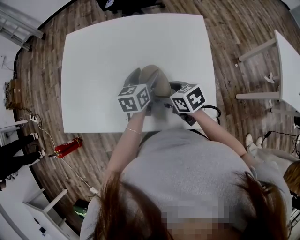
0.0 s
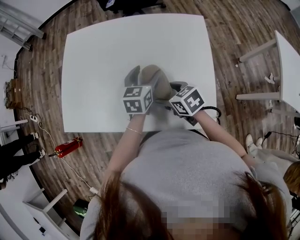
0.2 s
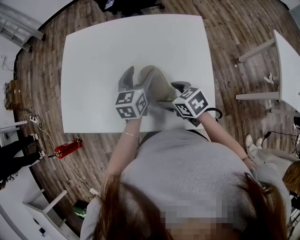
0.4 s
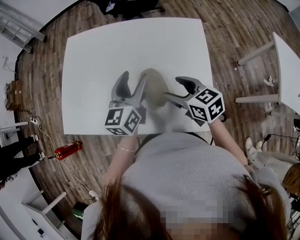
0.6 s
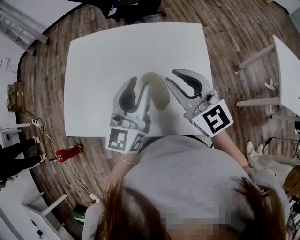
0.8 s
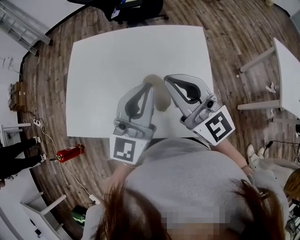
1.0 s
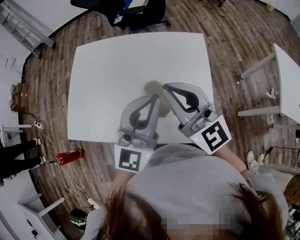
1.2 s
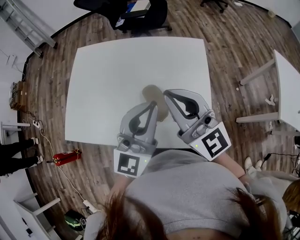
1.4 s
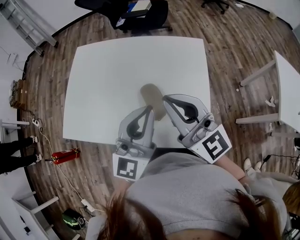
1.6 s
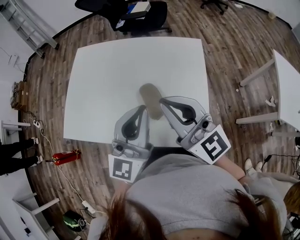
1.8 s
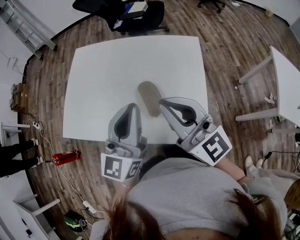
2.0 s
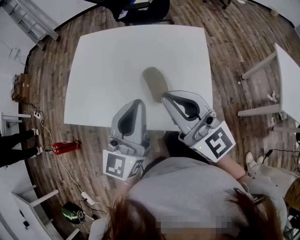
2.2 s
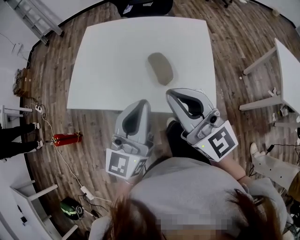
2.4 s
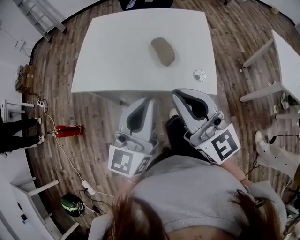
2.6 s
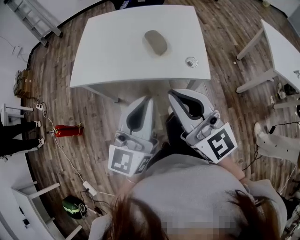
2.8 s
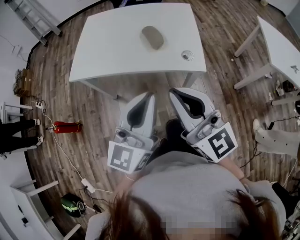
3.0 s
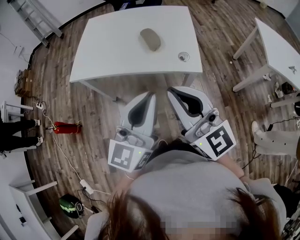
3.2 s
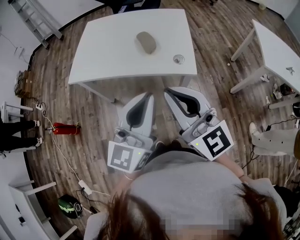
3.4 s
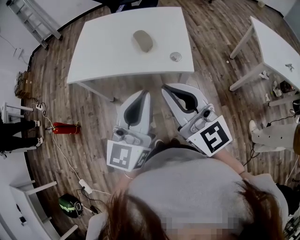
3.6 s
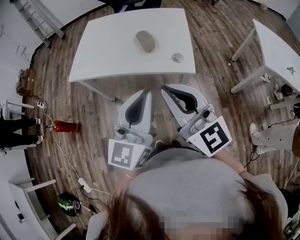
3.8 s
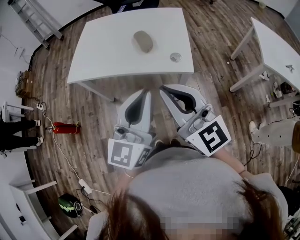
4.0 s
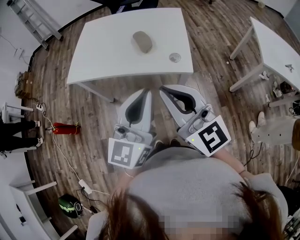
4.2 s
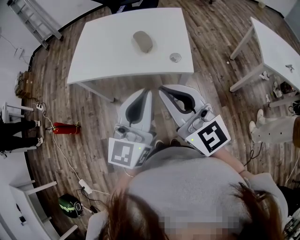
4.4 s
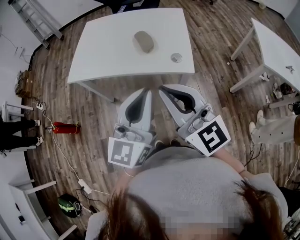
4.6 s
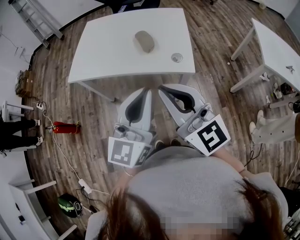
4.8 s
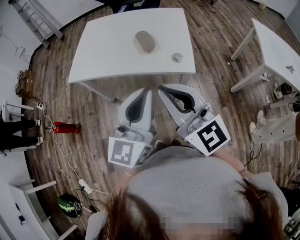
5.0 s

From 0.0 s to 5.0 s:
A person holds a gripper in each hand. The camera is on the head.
From 0.0 s to 1.6 s: The left gripper shifts about 25 cm upward and backward, tips its fingers upward by approximately 40 degrees, and closes its fingers. Meanwhile the right gripper heads upward, covering some 25 cm, angles its fingers upward, by roughly 50 degrees, and closes up.
From 1.6 s to 3.4 s: The grippers both shift backward by roughly 35 cm.
From 3.4 s to 5.0 s: The grippers make only small movements.

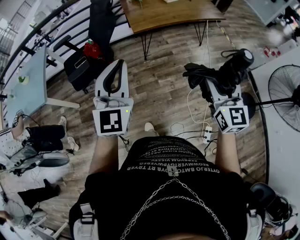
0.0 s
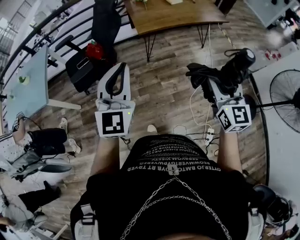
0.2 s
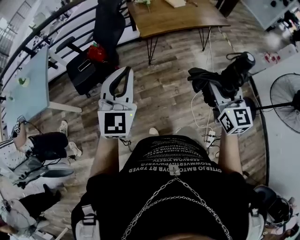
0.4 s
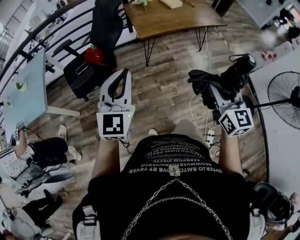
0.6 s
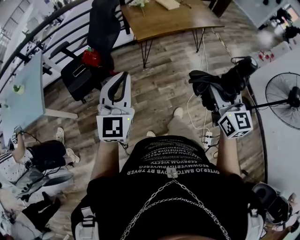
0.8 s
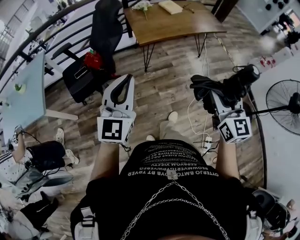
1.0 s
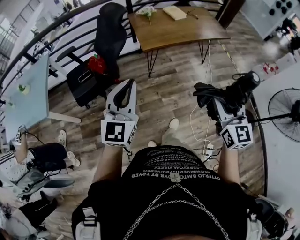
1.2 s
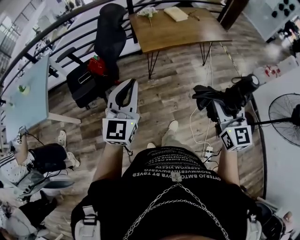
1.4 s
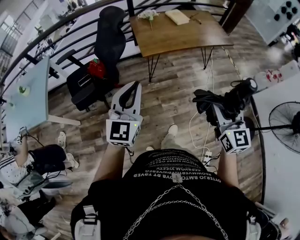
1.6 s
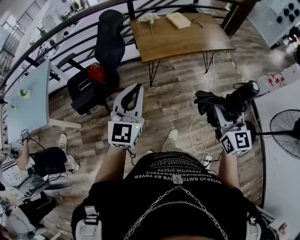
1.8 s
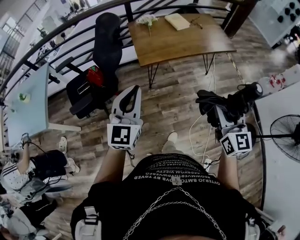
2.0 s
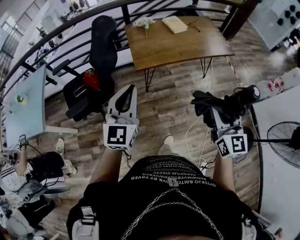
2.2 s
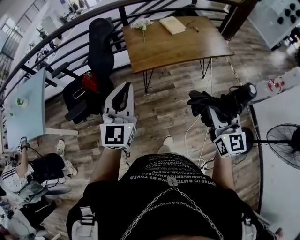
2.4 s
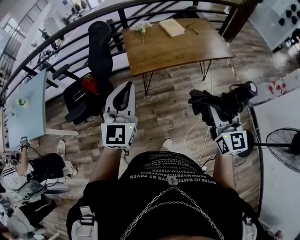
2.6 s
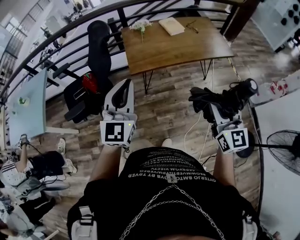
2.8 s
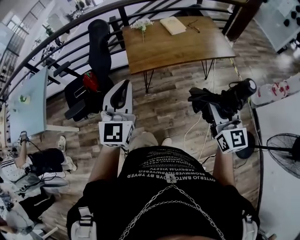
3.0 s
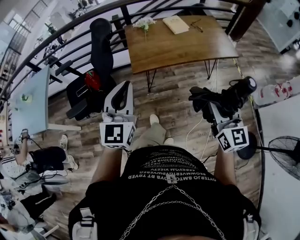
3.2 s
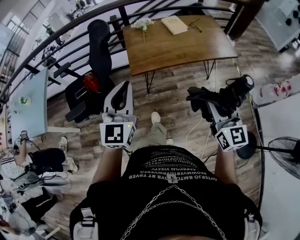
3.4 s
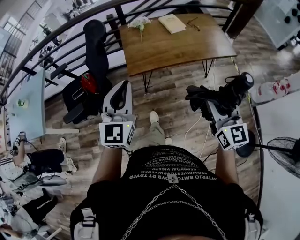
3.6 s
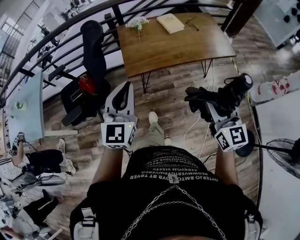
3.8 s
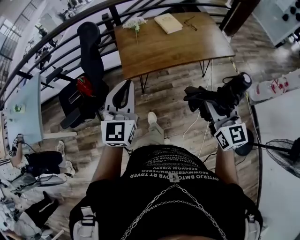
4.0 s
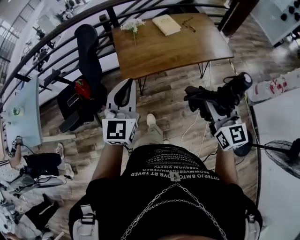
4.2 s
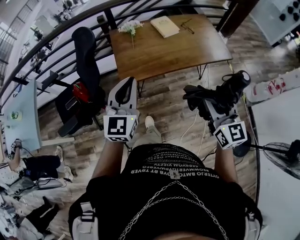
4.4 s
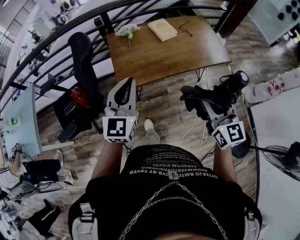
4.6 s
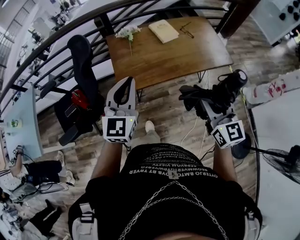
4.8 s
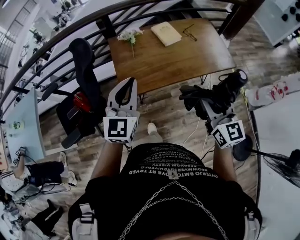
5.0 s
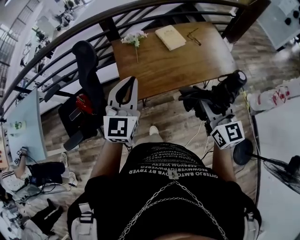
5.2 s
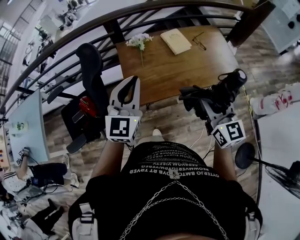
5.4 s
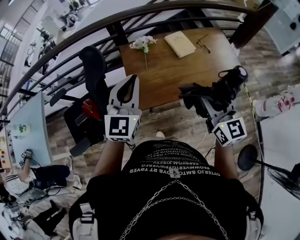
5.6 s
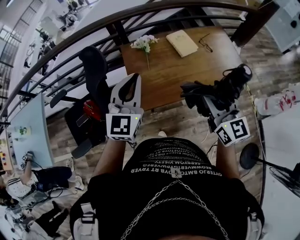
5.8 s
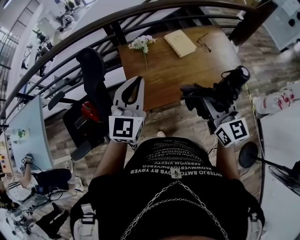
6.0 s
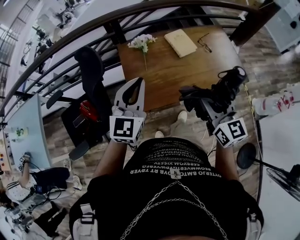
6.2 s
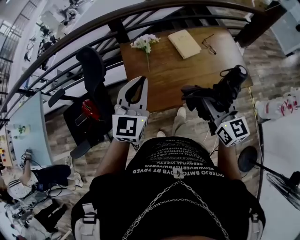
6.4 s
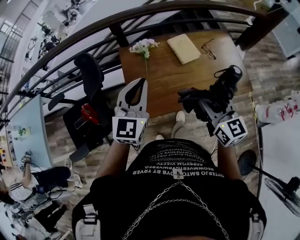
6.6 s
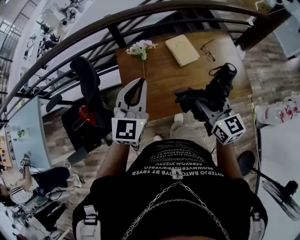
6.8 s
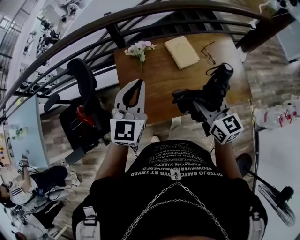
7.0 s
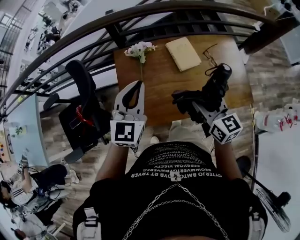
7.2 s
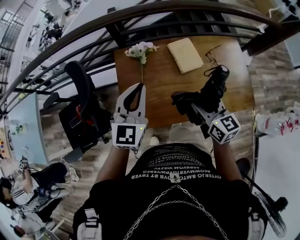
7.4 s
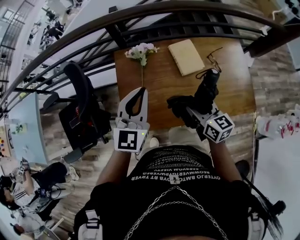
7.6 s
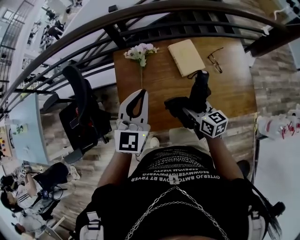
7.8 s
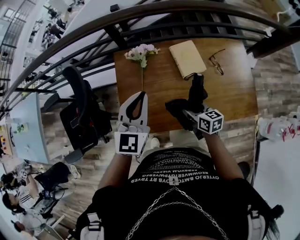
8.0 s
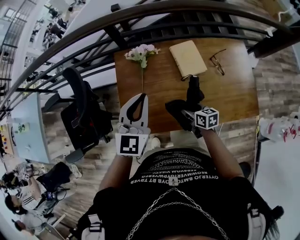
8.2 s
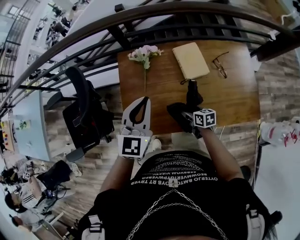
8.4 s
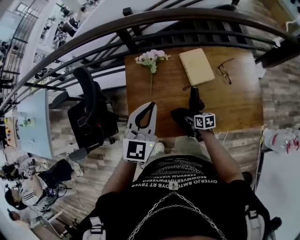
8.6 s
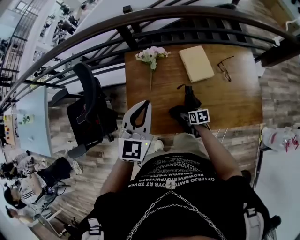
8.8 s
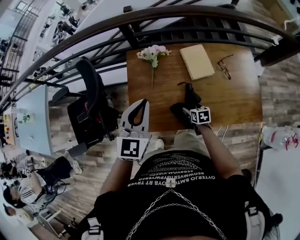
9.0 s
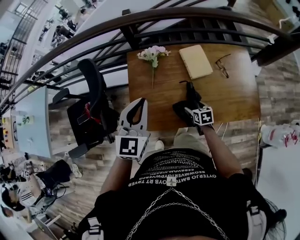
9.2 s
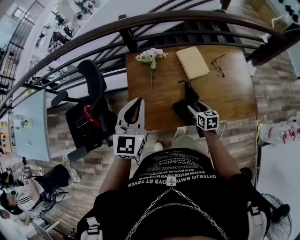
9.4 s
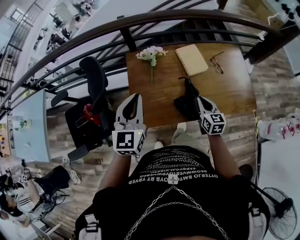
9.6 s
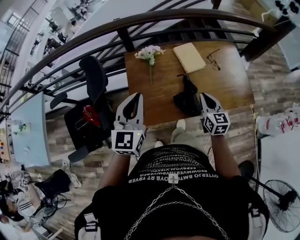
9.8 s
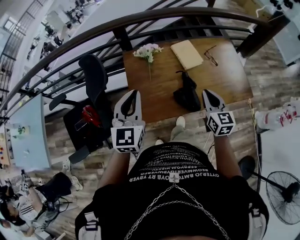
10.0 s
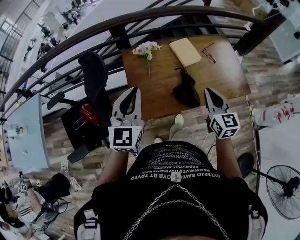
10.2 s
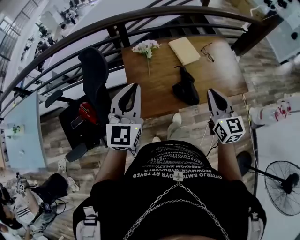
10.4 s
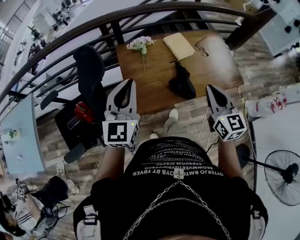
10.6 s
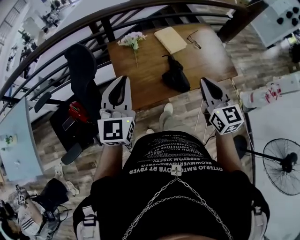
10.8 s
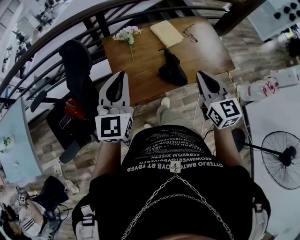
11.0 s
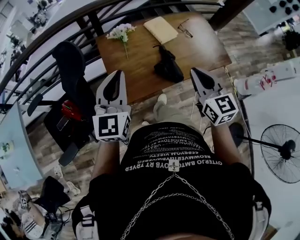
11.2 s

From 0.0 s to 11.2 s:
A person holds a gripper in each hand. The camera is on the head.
From 0.0 s to 1.6 s: The right gripper heads forward, covering approximately 10 cm, while the left gripper goes approximately 15 cm forward and downward.
From 1.6 s to 3.2 s: The grippers both shift forward and to the right by approximately 25 cm.
From 3.2 s to 4.8 s: Both grippers travel together forward, some 15 cm.
From 4.8 s to 6.4 s: Both grippers travel together forward, approximately 20 cm.
From 6.4 s to 8.0 s: The right gripper shifts roughly 30 cm downward and forward, and rotates about 40 degrees, while the left gripper moves forward, to the right and downward, approximately 15 cm.
From 8.0 s to 9.6 s: The right gripper moves approximately 15 cm downward and comes back, rotates approximately 30 degrees, and closes up. Meanwhile the left gripper moves to the left and backward, some 10 cm.
From 9.6 s to 11.2 s: The left gripper travels backward by some 5 cm; the right gripper moves upward and backward, some 25 cm.

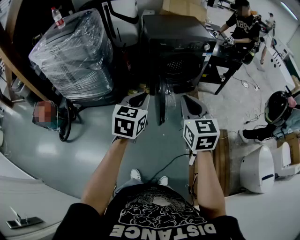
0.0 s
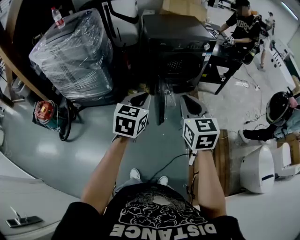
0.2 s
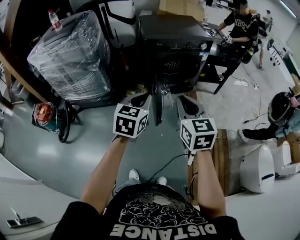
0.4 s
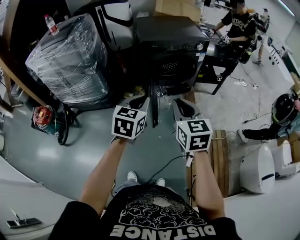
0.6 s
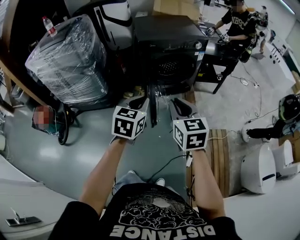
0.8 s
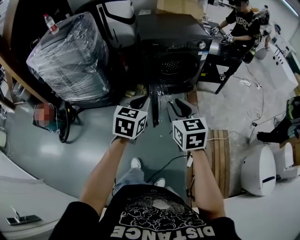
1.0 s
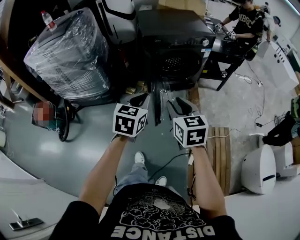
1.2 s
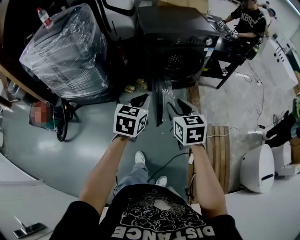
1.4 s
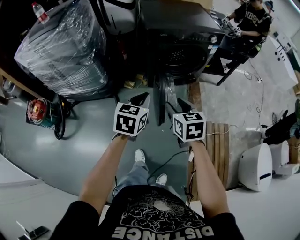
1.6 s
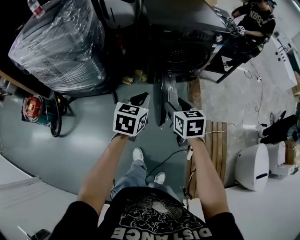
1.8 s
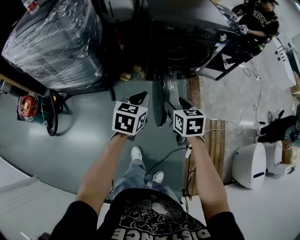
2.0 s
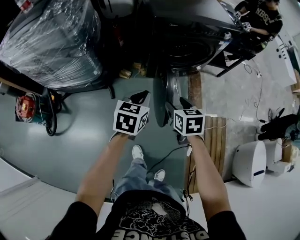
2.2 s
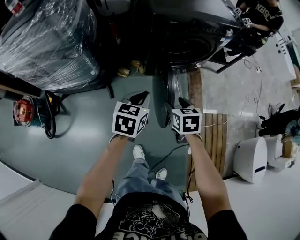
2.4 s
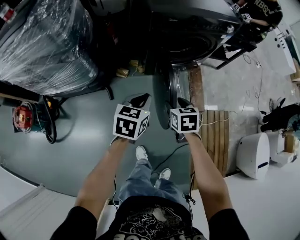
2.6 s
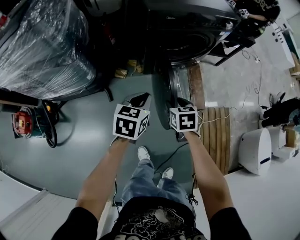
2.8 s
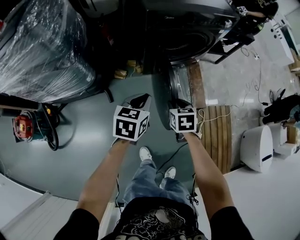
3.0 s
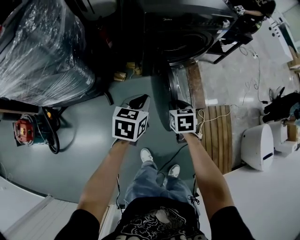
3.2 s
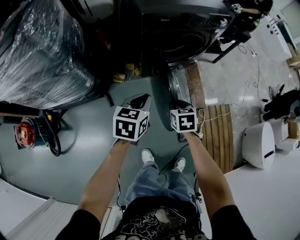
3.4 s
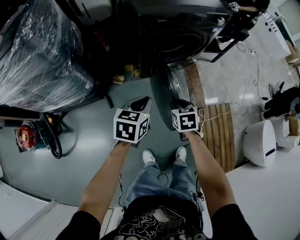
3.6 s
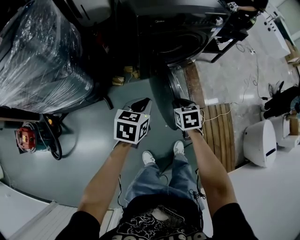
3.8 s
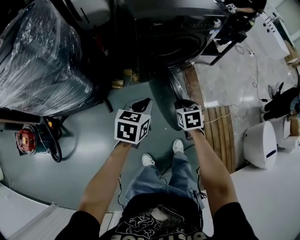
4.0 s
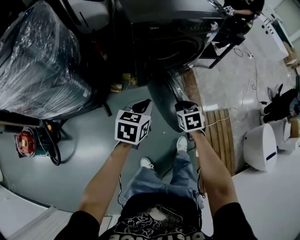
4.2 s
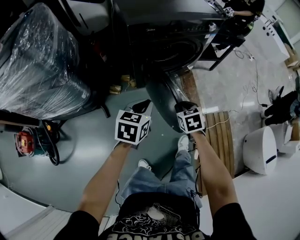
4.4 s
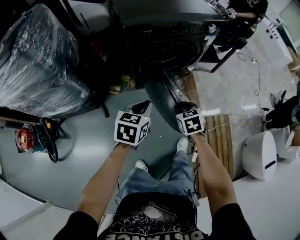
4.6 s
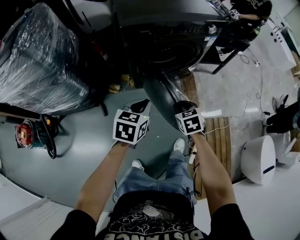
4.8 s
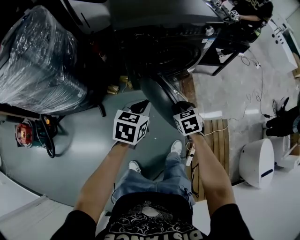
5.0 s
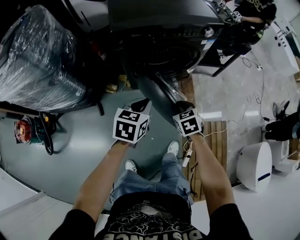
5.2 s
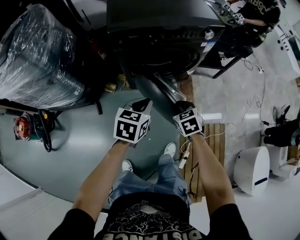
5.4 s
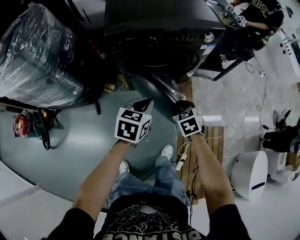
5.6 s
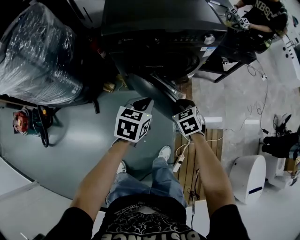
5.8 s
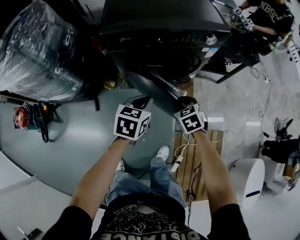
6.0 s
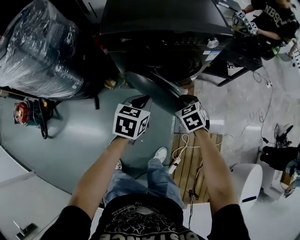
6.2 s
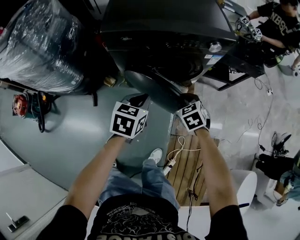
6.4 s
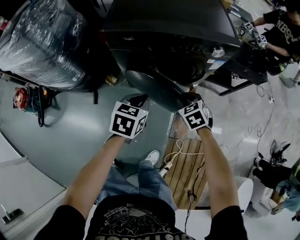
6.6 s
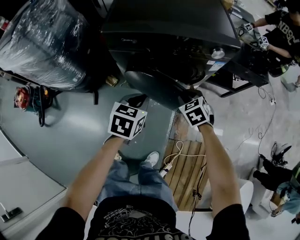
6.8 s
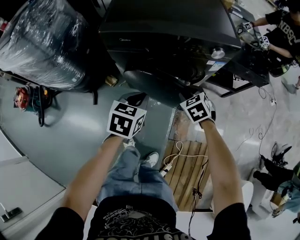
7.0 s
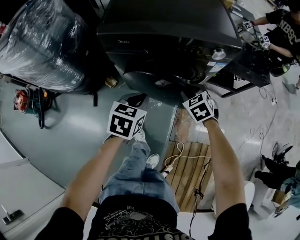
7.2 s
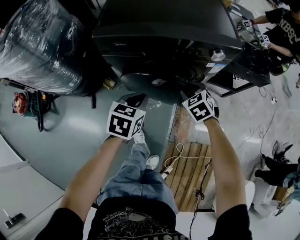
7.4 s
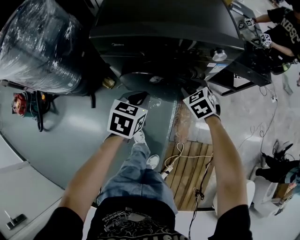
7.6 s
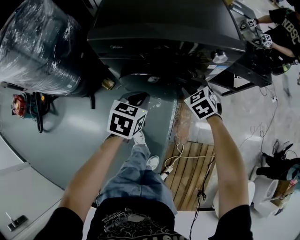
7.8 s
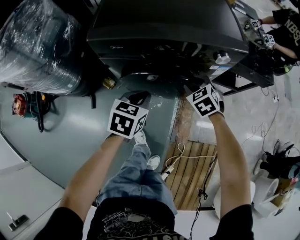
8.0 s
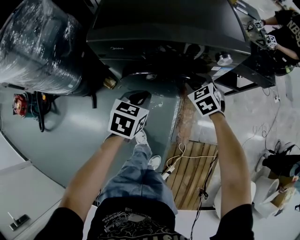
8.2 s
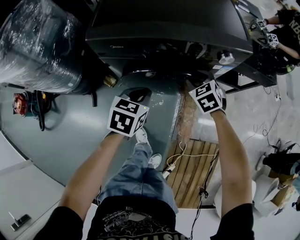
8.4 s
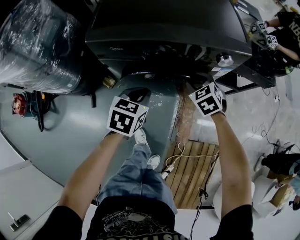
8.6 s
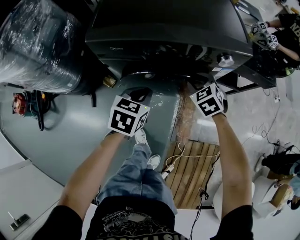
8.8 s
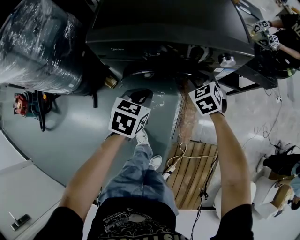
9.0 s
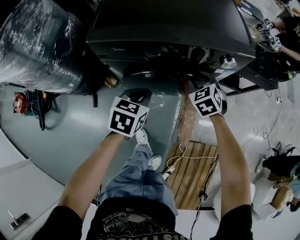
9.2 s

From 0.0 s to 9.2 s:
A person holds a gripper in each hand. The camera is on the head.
From 0.0 s to 1.6 s: The left gripper travels forward and downward by roughly 15 cm. Meanwhile the right gripper shifts some 15 cm downward and forward, turns by roughly 20 degrees, and opens its fingers.
From 1.6 s to 3.0 s: The right gripper moves downward and forward, approximately 20 cm, and changes its angle by about 20 degrees; the left gripper shifts approximately 20 cm downward, forward and to the left.
From 3.0 s to 4.6 s: The right gripper moves to the right and forward, roughly 10 cm. The left gripper heads to the right, covering approximately 10 cm.
From 4.6 s to 6.2 s: The left gripper travels to the right and forward by some 20 cm; the right gripper is displaced forward and to the right by roughly 20 cm, and swivels roughly 20 degrees.
From 6.2 s to 7.6 s: The left gripper moves forward, some 5 cm. Meanwhile the right gripper moves forward, about 15 cm.
From 7.6 s to 9.2 s: The right gripper is displaced forward by approximately 5 cm. Meanwhile the left gripper changes place by about 5 cm.
